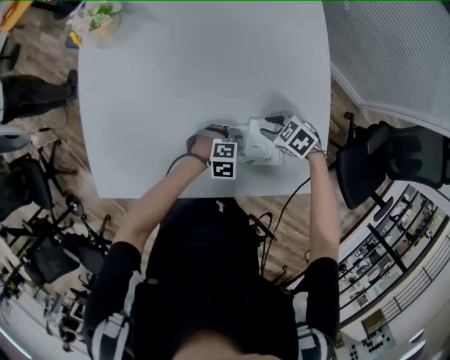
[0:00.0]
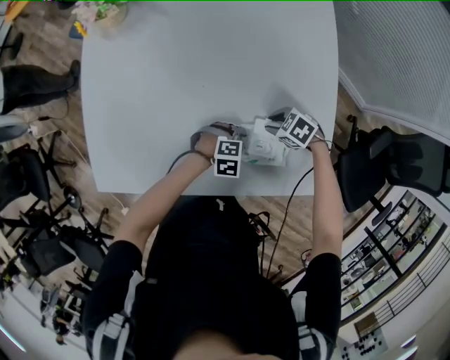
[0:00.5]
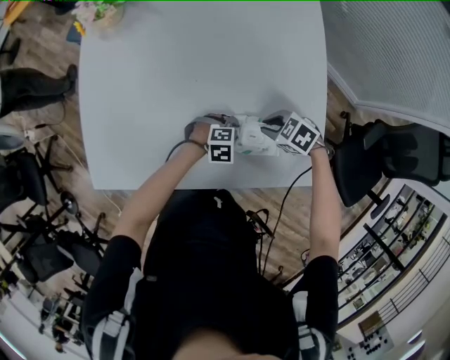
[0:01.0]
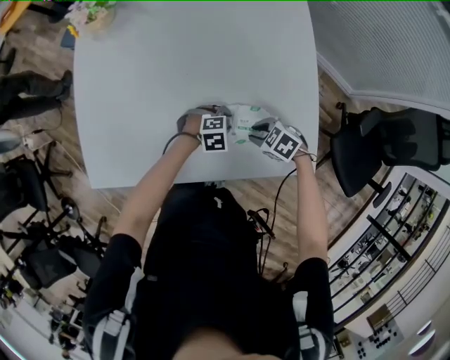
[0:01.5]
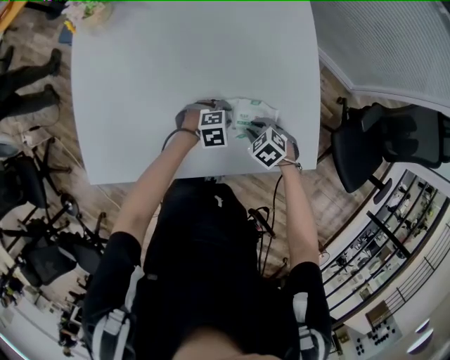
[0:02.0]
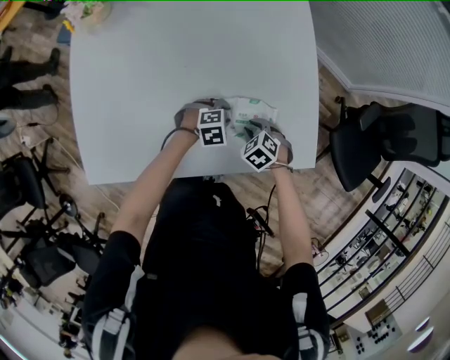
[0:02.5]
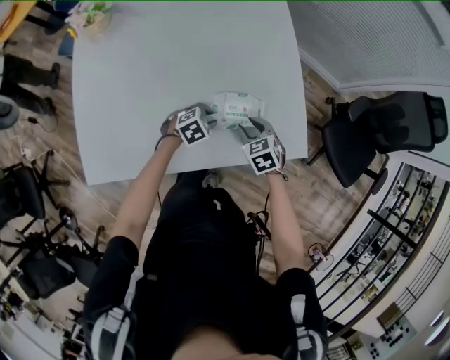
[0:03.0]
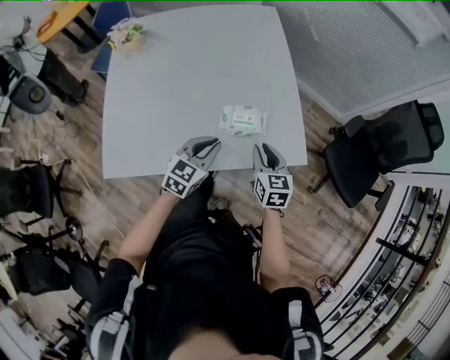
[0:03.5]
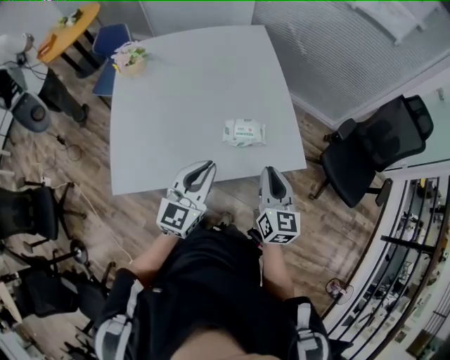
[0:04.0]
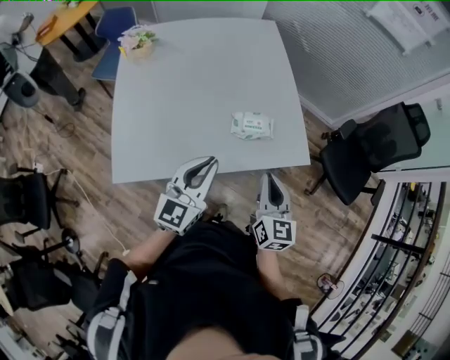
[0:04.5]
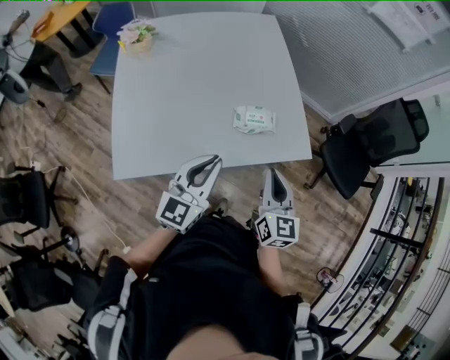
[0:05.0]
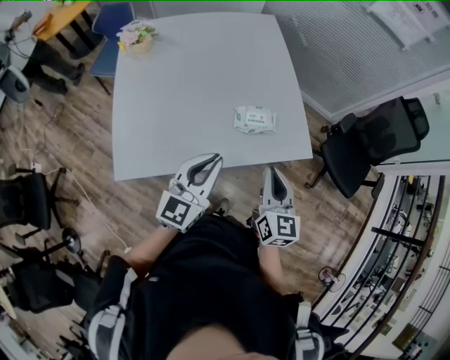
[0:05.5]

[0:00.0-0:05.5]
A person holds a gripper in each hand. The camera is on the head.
0:00.0 to 0:02.0: The right gripper shifts by about 10 cm.
0:02.0 to 0:03.5: Both grippers travel together upward, about 25 cm. The left gripper angles its fingers upward, by roughly 40 degrees, and closes, while the right gripper angles its fingers upward, by about 40 degrees.
0:03.5 to 0:05.5: Both grippers travel together upward, backward and to the left, approximately 20 cm. The right gripper closes up. Meanwhile the left gripper swivels roughly 30 degrees.

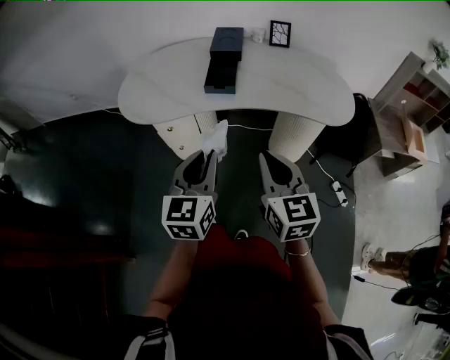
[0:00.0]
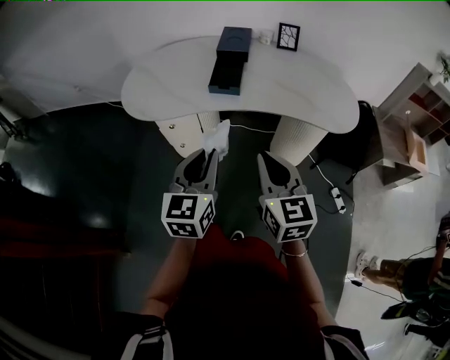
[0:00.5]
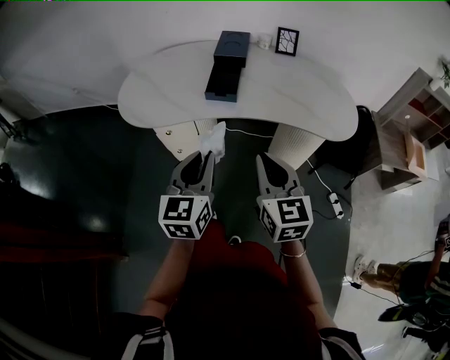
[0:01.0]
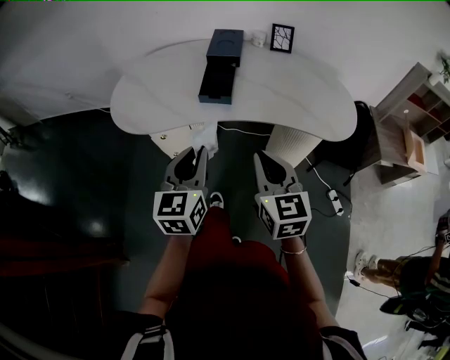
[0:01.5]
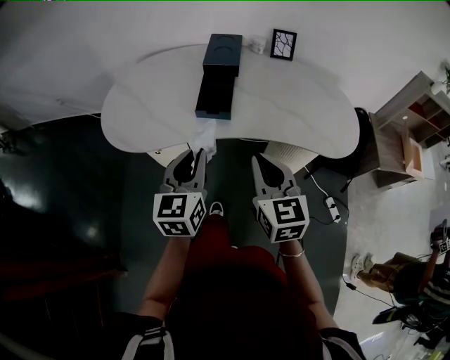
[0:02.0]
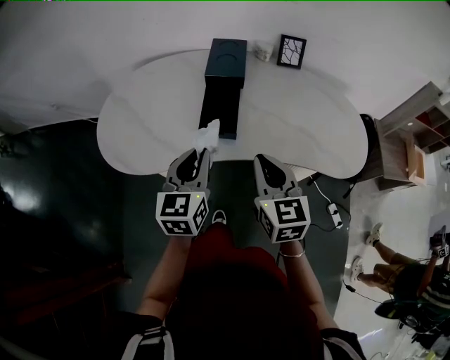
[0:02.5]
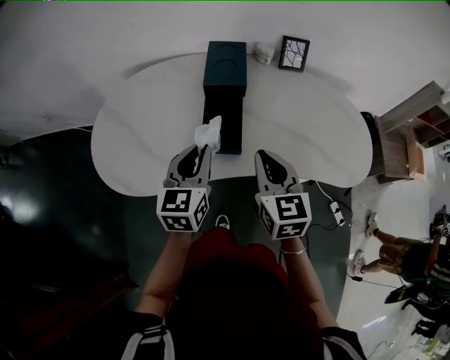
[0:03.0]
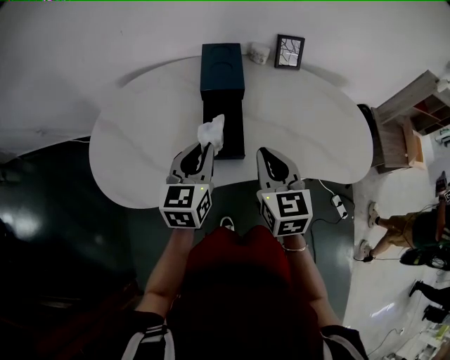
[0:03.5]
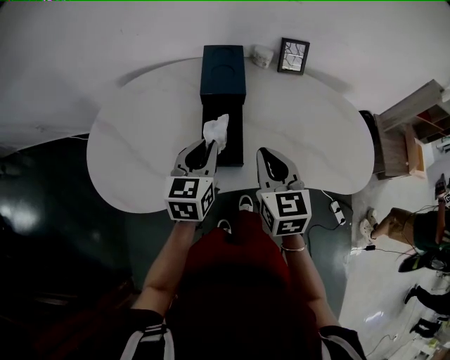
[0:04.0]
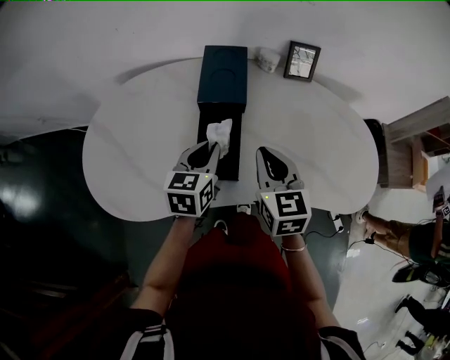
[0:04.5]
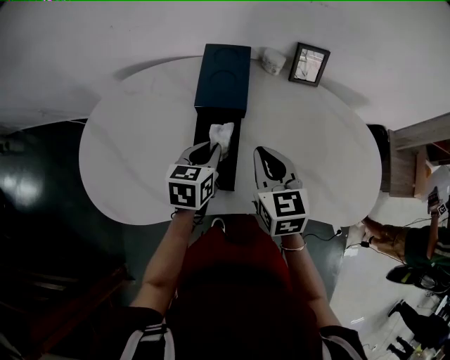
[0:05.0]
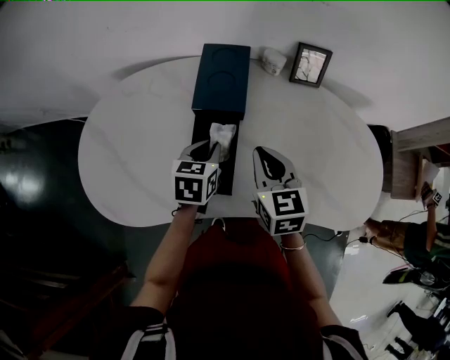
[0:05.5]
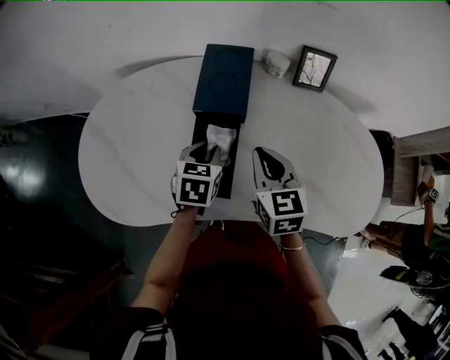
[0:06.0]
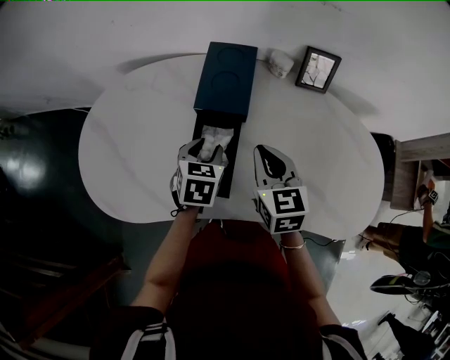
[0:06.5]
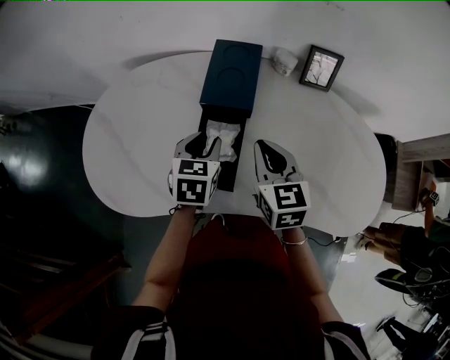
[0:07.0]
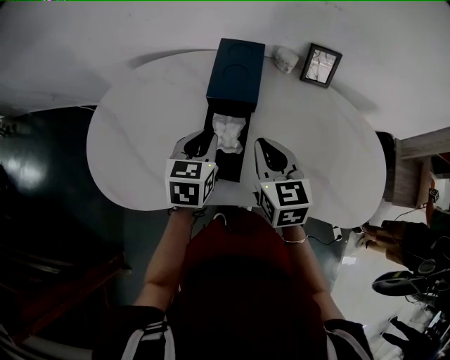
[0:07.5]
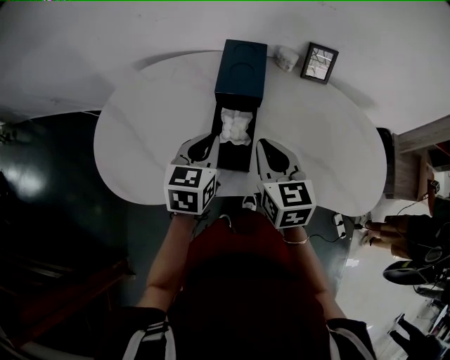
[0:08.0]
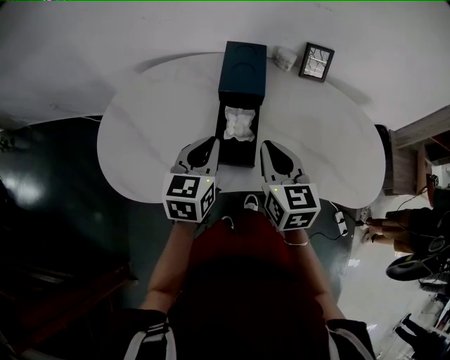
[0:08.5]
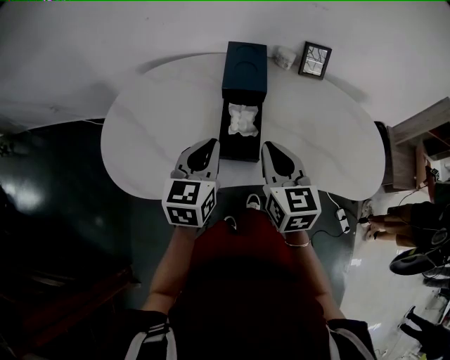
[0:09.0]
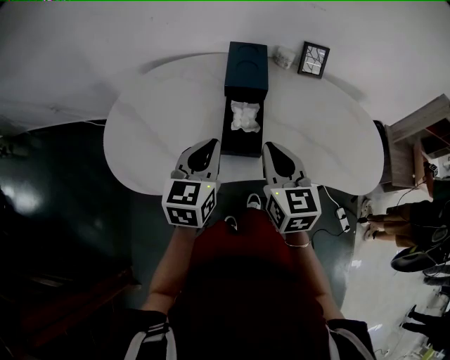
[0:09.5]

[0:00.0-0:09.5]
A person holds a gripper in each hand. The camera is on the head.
0:00.0 to 0:02.0: Both grippers travel together forward, roughly 15 cm.
0:02.0 to 0:04.0: Both grippers move forward, roughly 20 cm.
0:04.0 to 0:05.5: The left gripper heads forward and downward, covering some 15 cm, and changes its angle by approximately 20 degrees; the right gripper moves forward, about 10 cm.
0:05.5 to 0:07.5: The left gripper shifts roughly 5 cm upward.
0:07.5 to 0:09.5: The right gripper travels backward by some 10 cm. Meanwhile the left gripper heads backward and upward, covering roughly 15 cm.

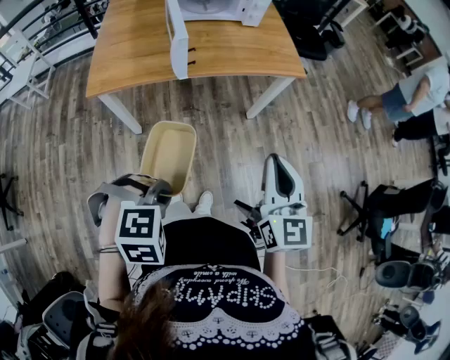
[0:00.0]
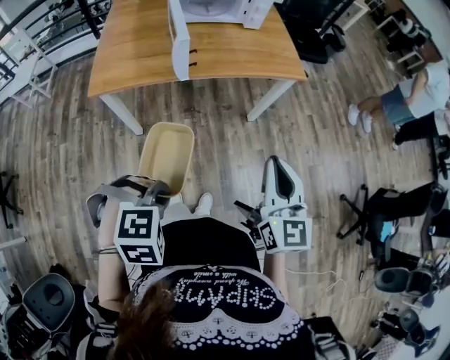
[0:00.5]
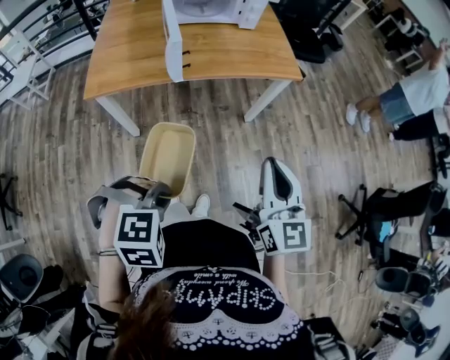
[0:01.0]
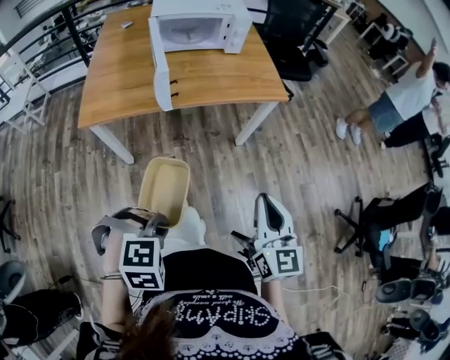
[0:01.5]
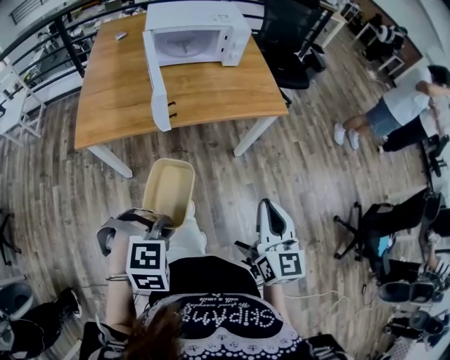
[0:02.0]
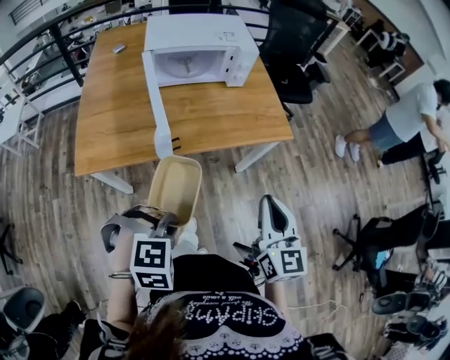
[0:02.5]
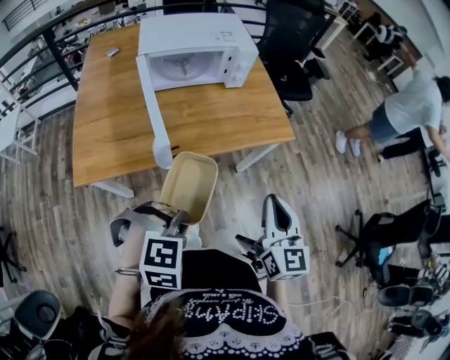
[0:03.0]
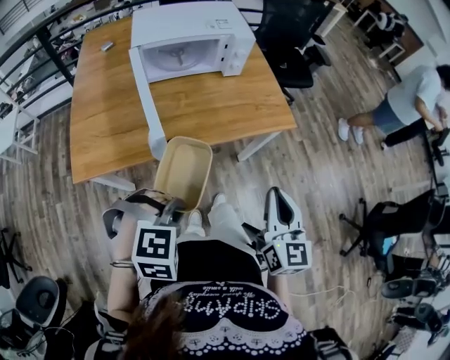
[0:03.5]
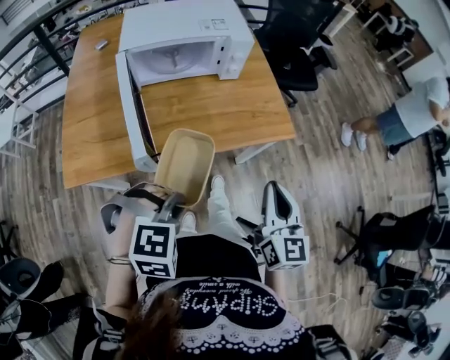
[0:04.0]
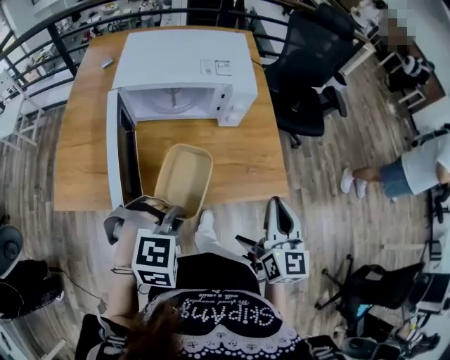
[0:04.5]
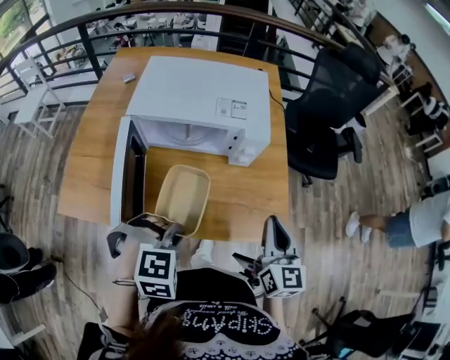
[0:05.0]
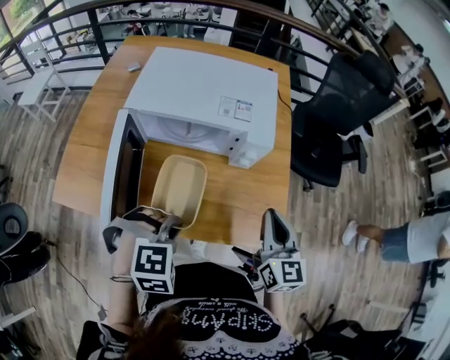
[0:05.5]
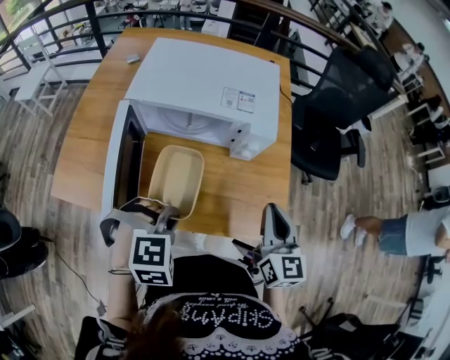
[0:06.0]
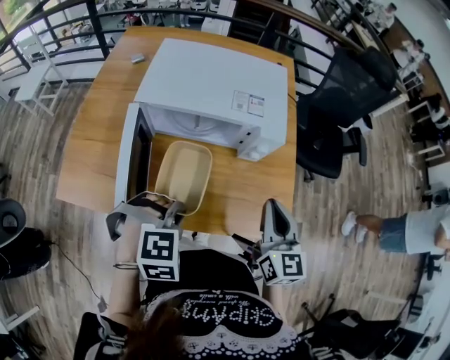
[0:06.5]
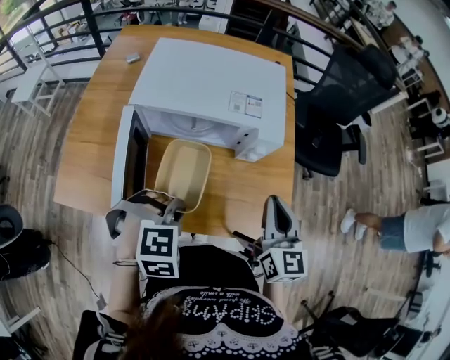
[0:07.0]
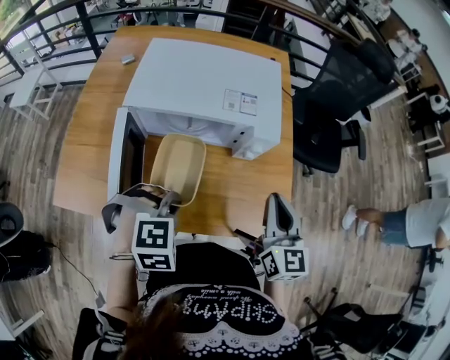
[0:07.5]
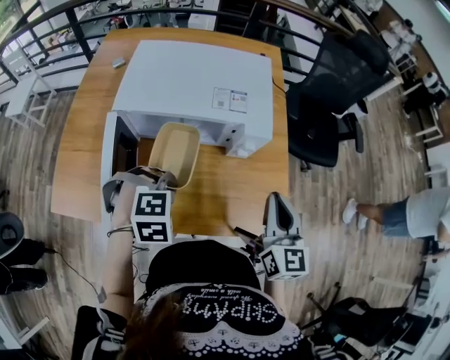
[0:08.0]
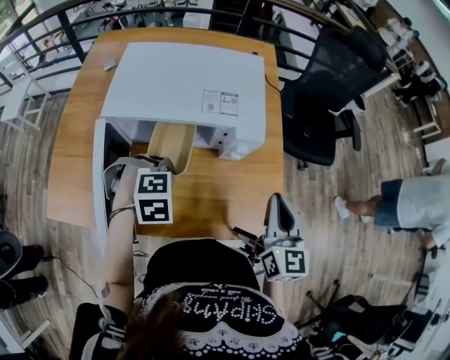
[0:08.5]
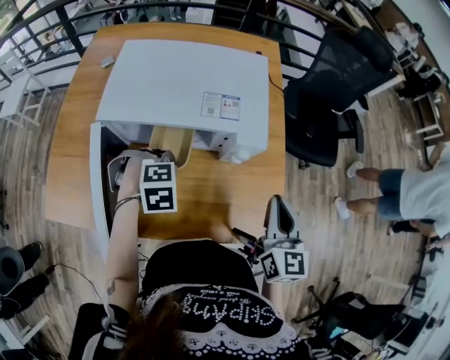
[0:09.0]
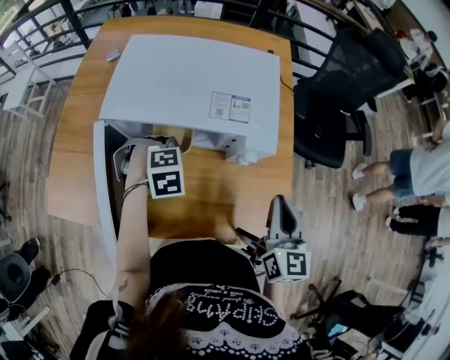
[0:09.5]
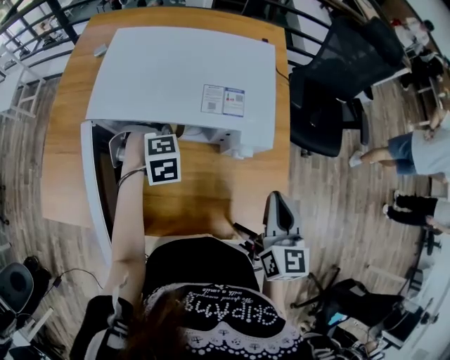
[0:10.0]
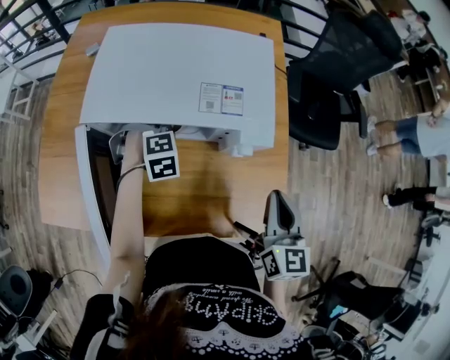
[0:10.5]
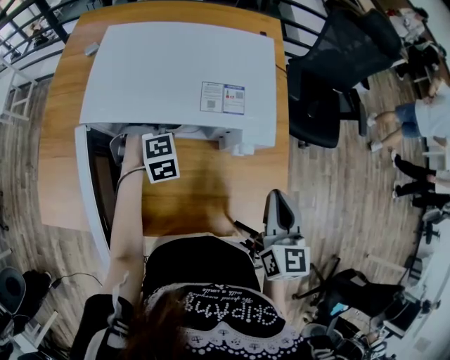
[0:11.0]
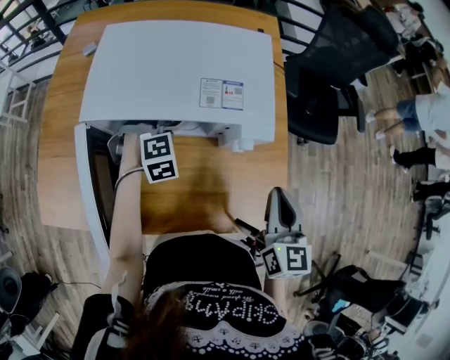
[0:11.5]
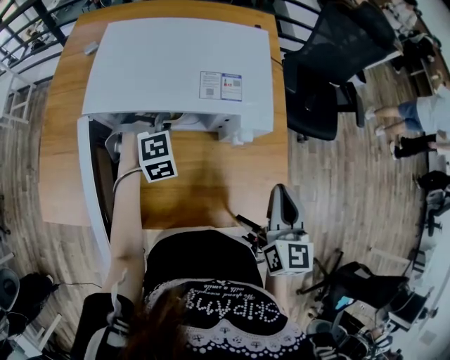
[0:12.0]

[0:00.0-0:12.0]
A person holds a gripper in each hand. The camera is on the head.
0:00.0 to 0:02.0: The right gripper moves about 5 cm; the left gripper is displaced forward by roughly 5 cm.
0:02.0 to 0:04.0: Both grippers travel together forward, some 25 cm.
0:04.0 to 0:06.0: The two grippers go roughly 25 cm forward. The right gripper changes its angle by some 20 degrees; the left gripper turns by about 30 degrees.
0:06.0 to 0:08.0: The left gripper moves forward, roughly 10 cm.
0:08.0 to 0:10.0: The left gripper moves approximately 20 cm. Meanwhile the right gripper changes place by approximately 5 cm.
0:10.0 to 0:12.0: The grippers move only a little.
